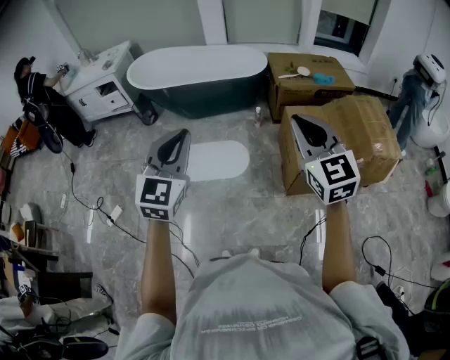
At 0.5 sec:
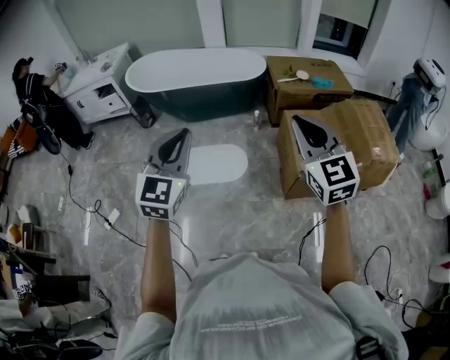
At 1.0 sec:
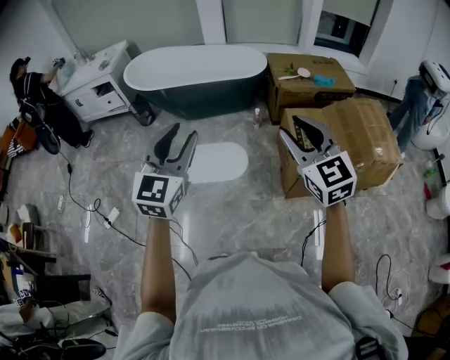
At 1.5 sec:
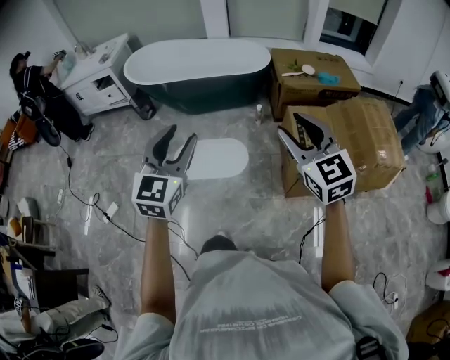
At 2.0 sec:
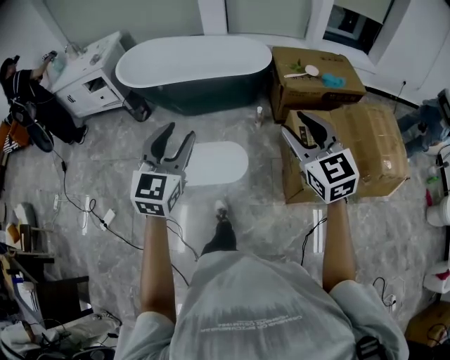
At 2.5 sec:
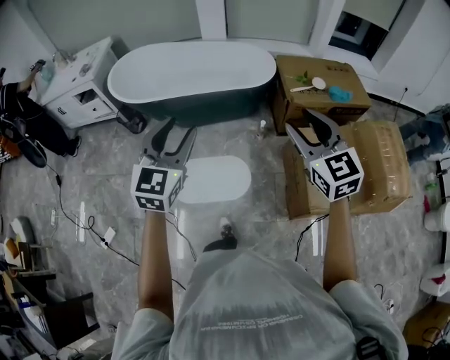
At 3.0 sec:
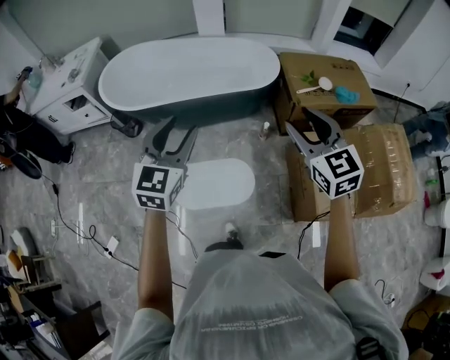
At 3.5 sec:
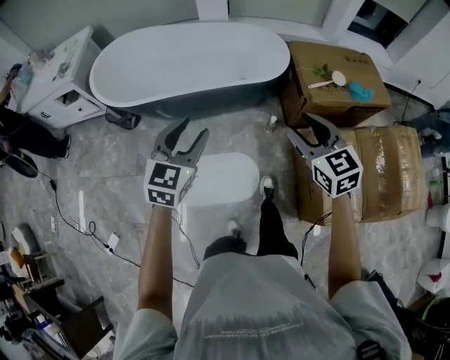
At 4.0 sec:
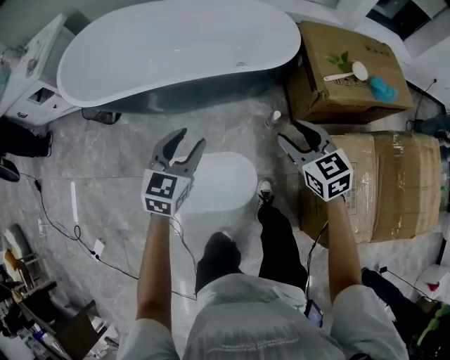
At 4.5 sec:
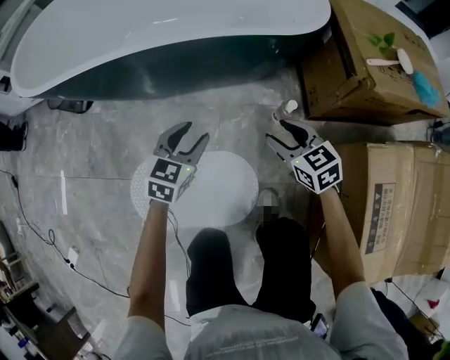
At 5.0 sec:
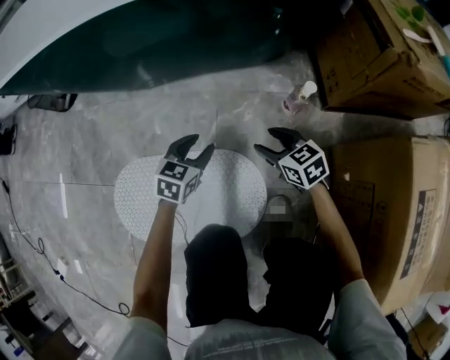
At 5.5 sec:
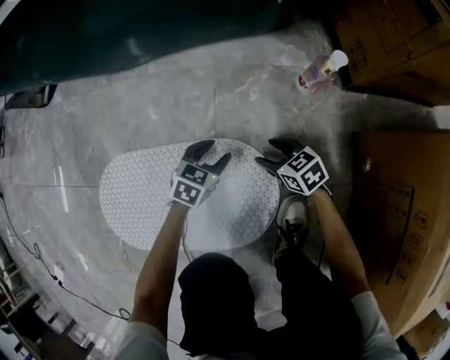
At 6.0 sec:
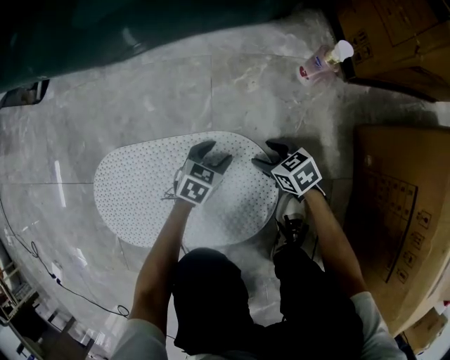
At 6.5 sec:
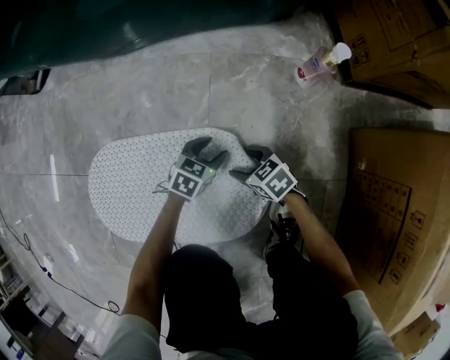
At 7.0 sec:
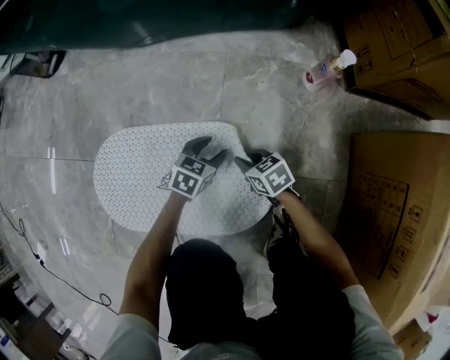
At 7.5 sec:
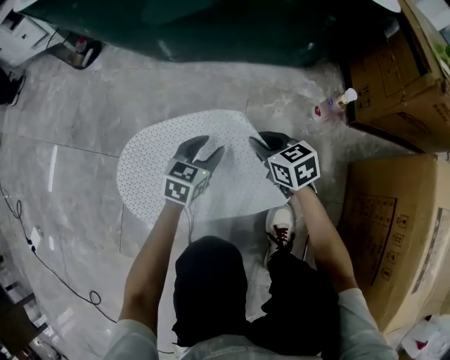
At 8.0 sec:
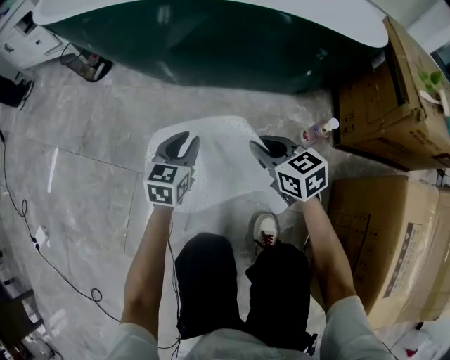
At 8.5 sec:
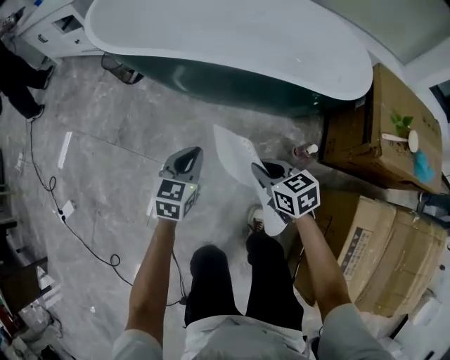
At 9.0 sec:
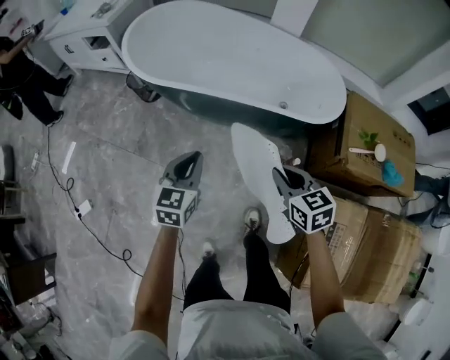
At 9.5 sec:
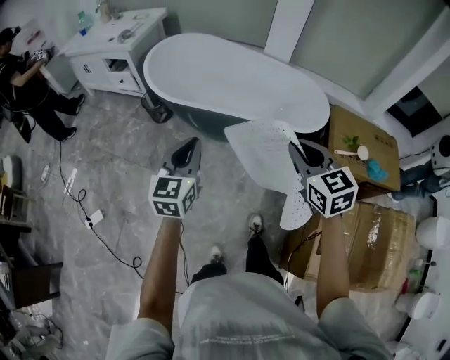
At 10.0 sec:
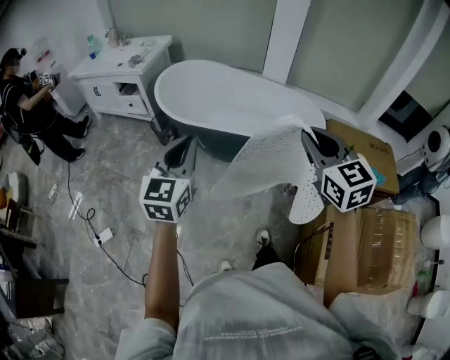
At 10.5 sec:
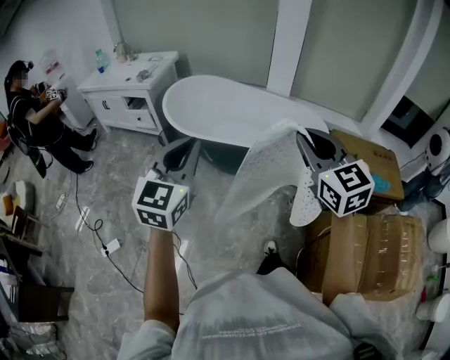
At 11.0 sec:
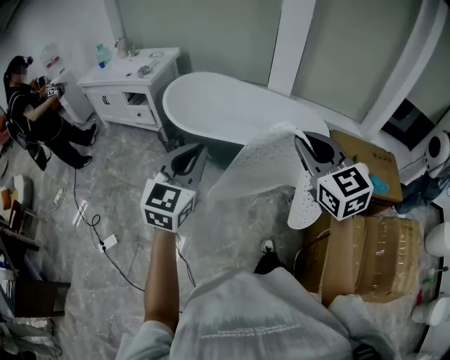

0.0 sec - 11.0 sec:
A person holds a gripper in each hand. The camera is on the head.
0.0 sec - 2.0 sec: Both grippers move forward, about 15 cm. The right gripper opens up; the left gripper opens.
2.0 sec - 3.5 sec: The two grippers go approximately 40 cm forward.
3.5 sec - 5.5 sec: Both grippers travel together downward, roughly 90 cm. The right gripper rotates approximately 40 degrees. Meanwhile the left gripper swivels some 30 degrees.
5.5 sec - 7.5 sec: Both grippers move upward and to the left, roughly 15 cm. The left gripper rotates roughly 20 degrees. The right gripper closes up.
7.5 sec - 9.0 sec: Both grippers travel together upward, approximately 60 cm. The left gripper swivels some 20 degrees, and closes its fingers.
9.0 sec - 11.0 sec: The left gripper heads upward and backward, covering approximately 35 cm, and turns by about 30 degrees; the right gripper moves upward, approximately 40 cm, and swivels roughly 40 degrees.

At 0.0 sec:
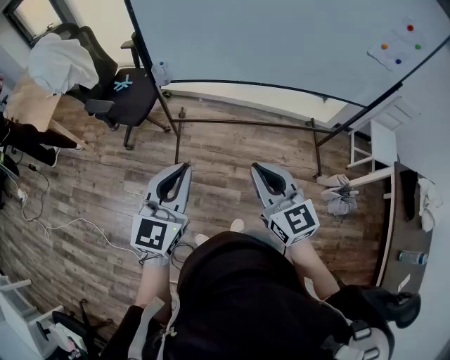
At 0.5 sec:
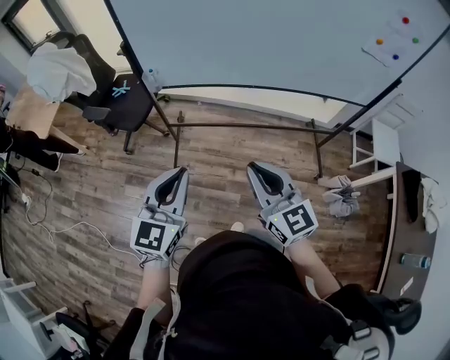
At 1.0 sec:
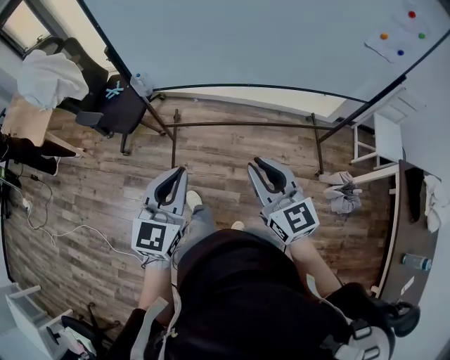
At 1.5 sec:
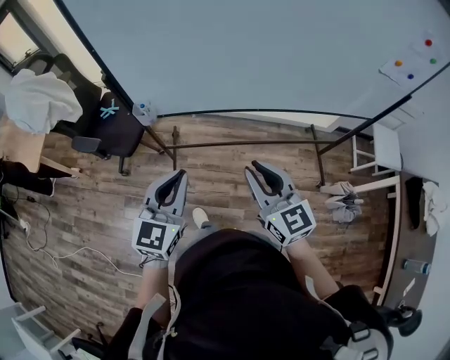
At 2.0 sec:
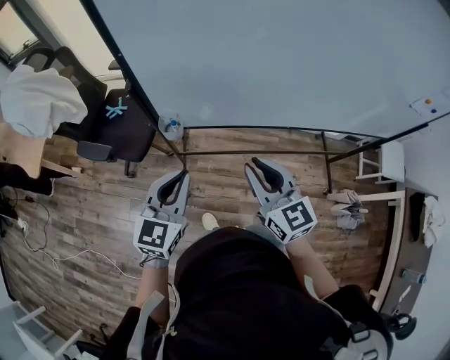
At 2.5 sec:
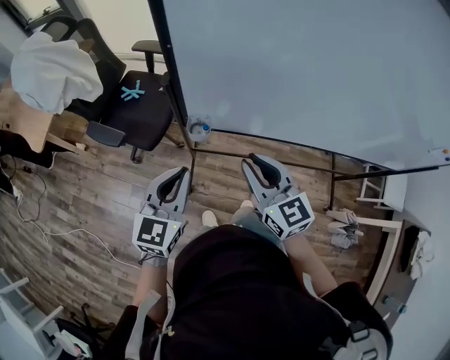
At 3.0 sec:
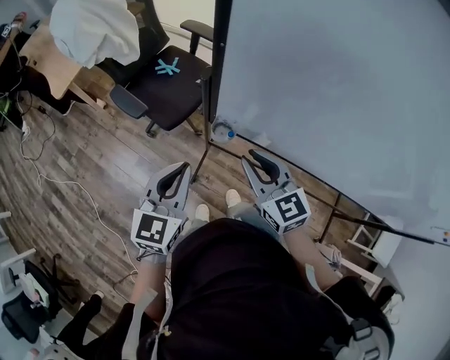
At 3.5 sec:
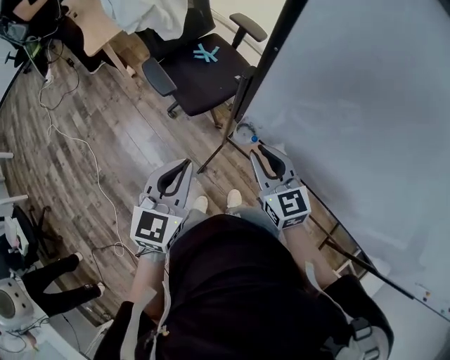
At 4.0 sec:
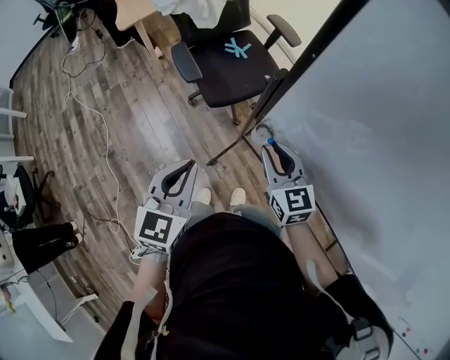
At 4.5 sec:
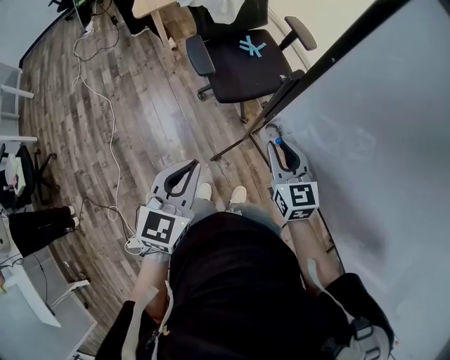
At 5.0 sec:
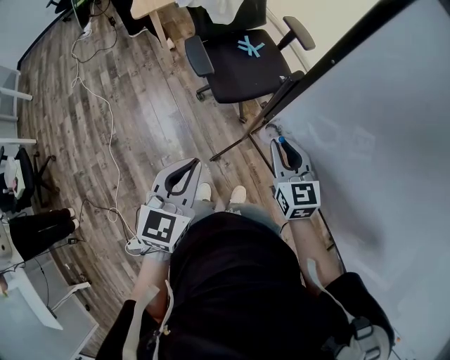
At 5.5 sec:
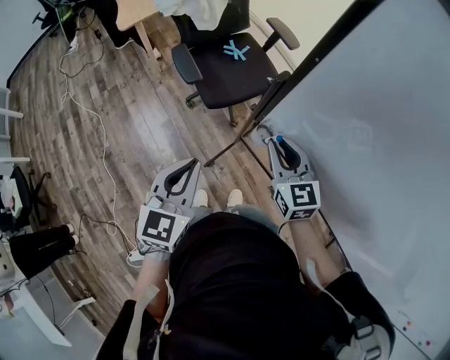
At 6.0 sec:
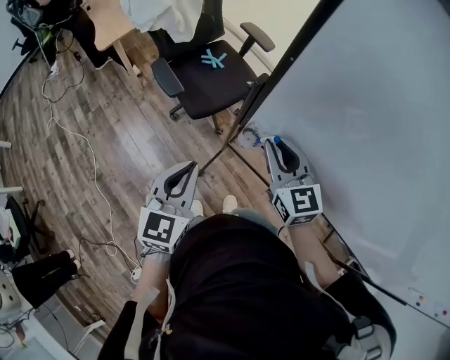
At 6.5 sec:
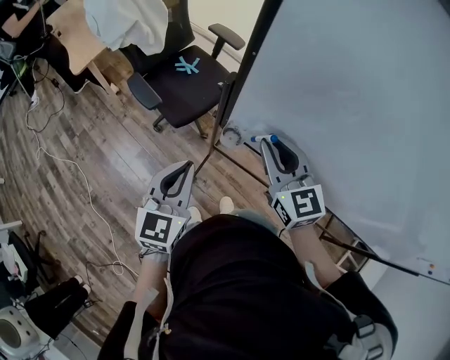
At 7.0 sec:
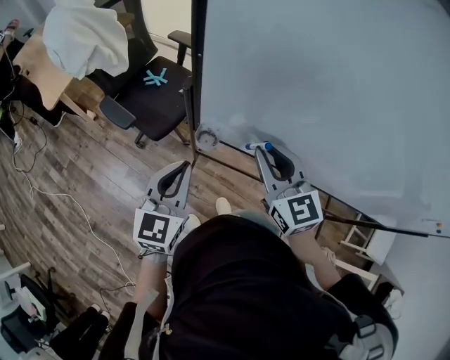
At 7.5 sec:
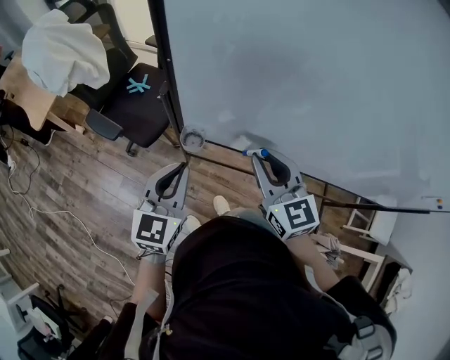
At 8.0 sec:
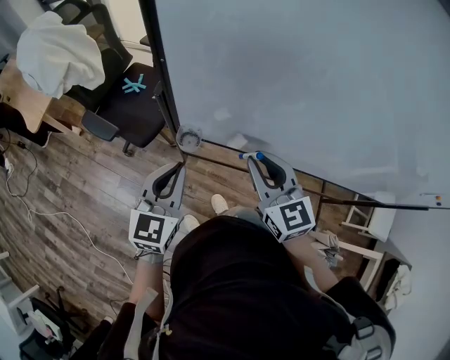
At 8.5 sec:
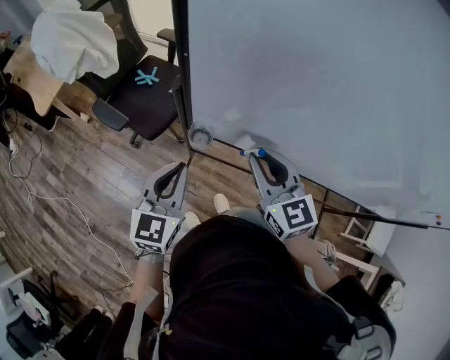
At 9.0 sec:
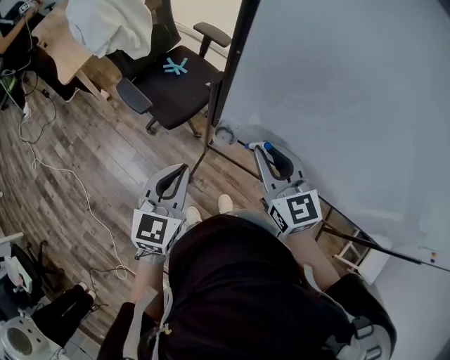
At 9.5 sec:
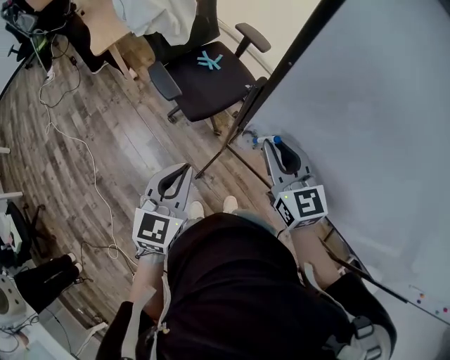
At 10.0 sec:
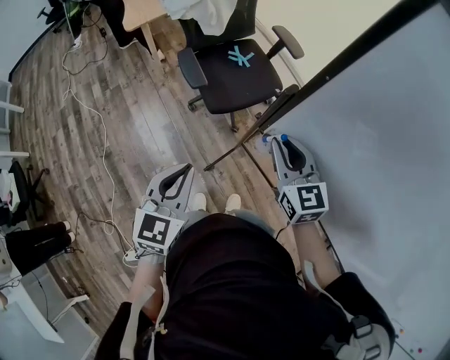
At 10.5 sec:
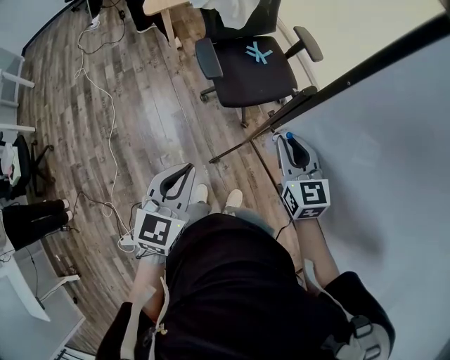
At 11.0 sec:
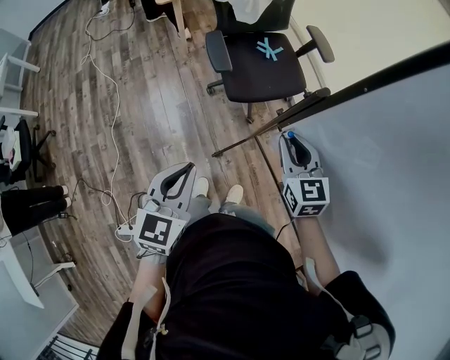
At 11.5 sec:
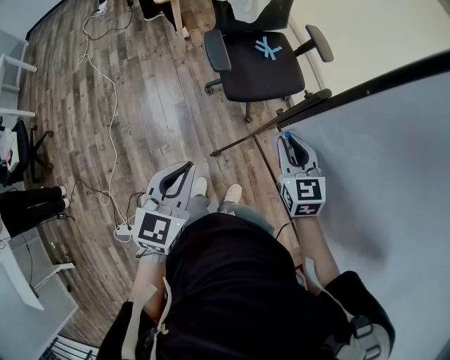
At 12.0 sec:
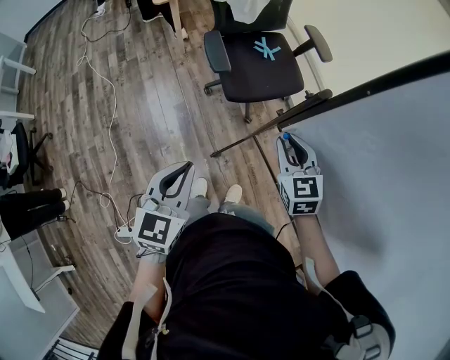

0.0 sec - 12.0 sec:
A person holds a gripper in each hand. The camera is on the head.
0.0 sec - 2.0 sec: Both grippers travel together forward, roughly 30 cm.
2.0 sec - 4.0 sec: The left gripper changes place by some 15 cm, and changes its angle by roughly 50 degrees. The right gripper shifts by some 25 cm, and swivels approximately 40 degrees.
4.0 sec - 6.0 sec: The right gripper shifts approximately 10 cm upward.
6.0 sec - 8.0 sec: The right gripper is displaced to the right and backward by roughly 15 cm, and rotates roughly 20 degrees, while the left gripper travels to the right by roughly 10 cm, and changes its angle by some 30 degrees.
8.0 sec - 10.0 sec: The left gripper moves some 15 cm, and swivels roughly 30 degrees; the right gripper ends up about 20 cm from where it was, and rotates about 30 degrees.
10.0 sec - 12.0 sec: The right gripper shifts about 5 cm downward.

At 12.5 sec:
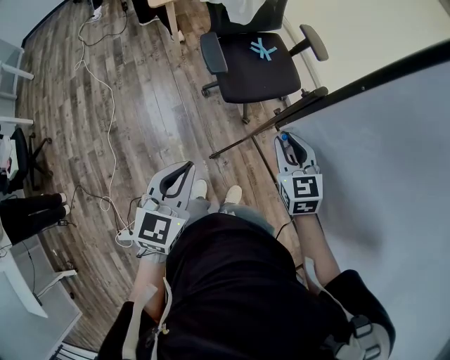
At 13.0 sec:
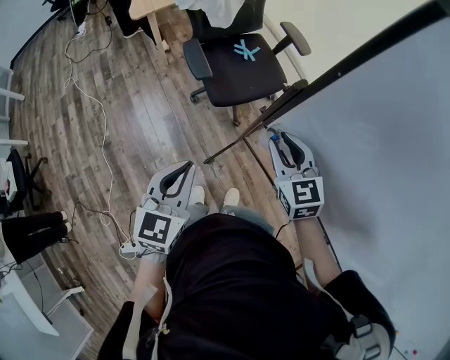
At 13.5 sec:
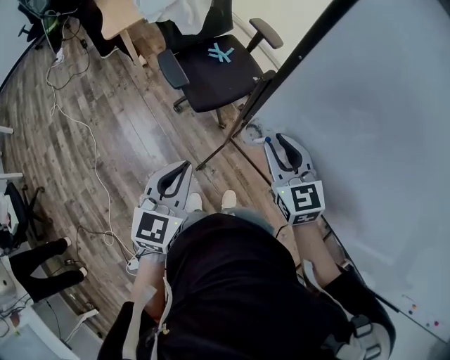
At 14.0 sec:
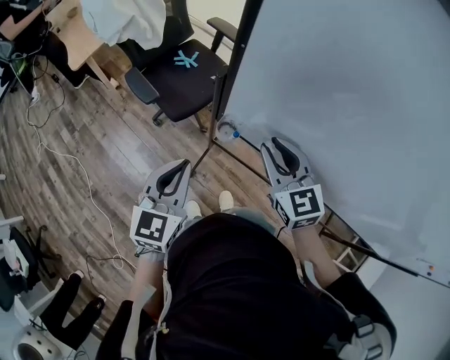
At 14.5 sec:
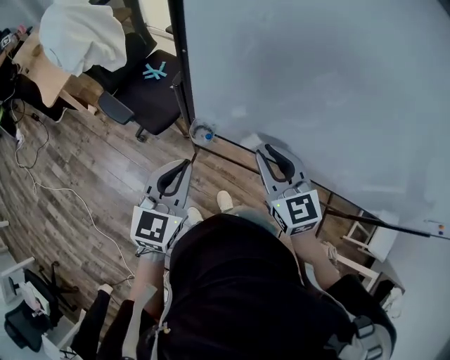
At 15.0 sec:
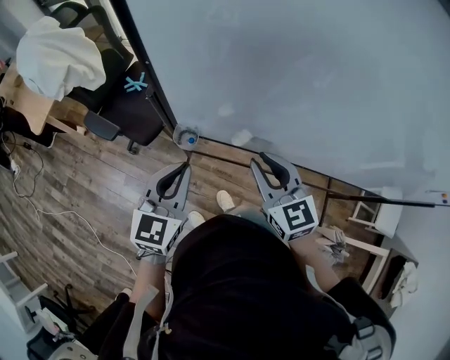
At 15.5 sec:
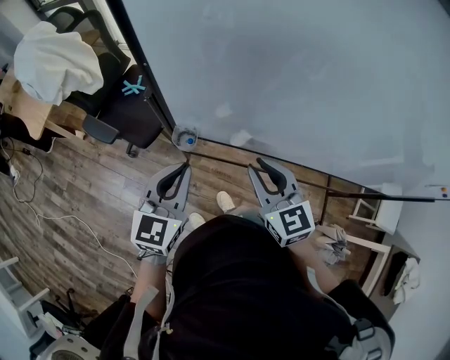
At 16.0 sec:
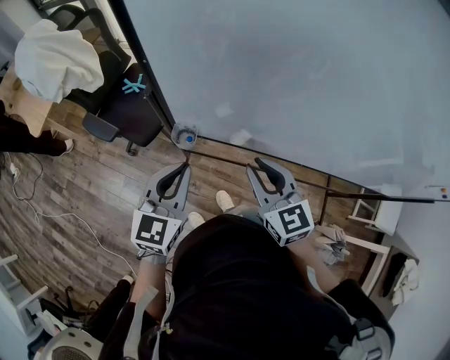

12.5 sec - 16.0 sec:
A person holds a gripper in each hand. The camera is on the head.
12.5 sec - 14.5 sec: The right gripper changes place by about 20 cm, and rotates some 30 degrees, while the left gripper changes place by roughly 20 cm, and turns by approximately 40 degrees.
14.5 sec - 16.0 sec: The right gripper changes place by approximately 5 cm.
